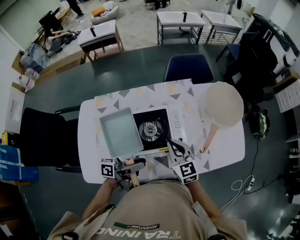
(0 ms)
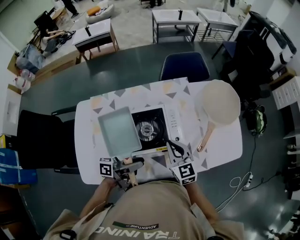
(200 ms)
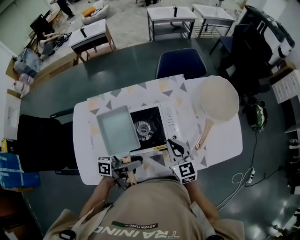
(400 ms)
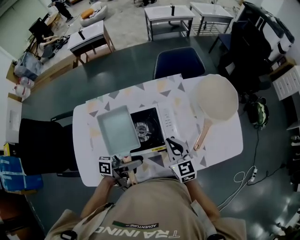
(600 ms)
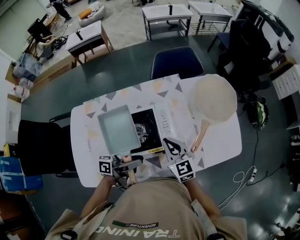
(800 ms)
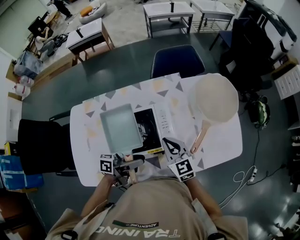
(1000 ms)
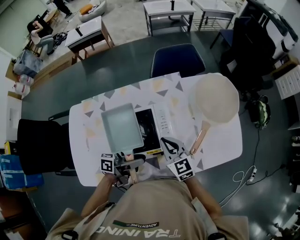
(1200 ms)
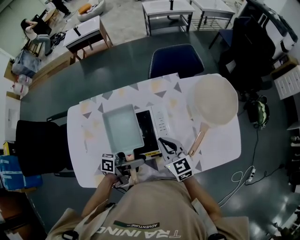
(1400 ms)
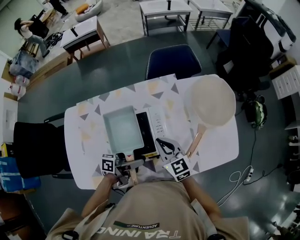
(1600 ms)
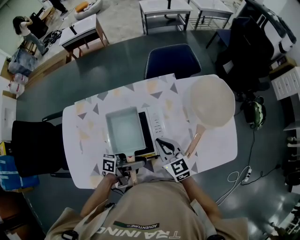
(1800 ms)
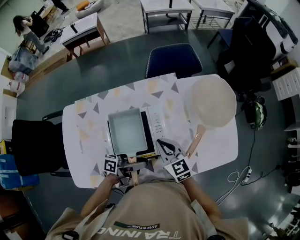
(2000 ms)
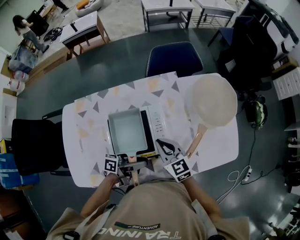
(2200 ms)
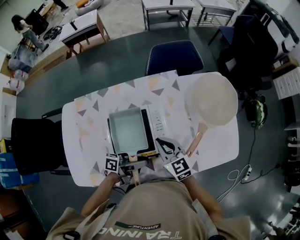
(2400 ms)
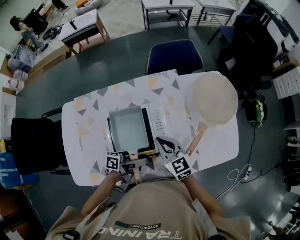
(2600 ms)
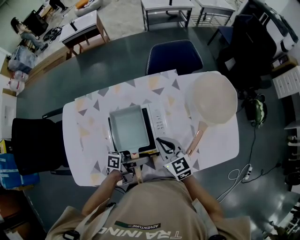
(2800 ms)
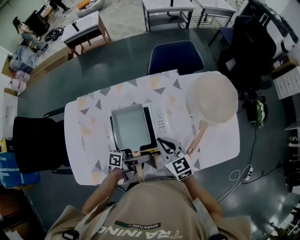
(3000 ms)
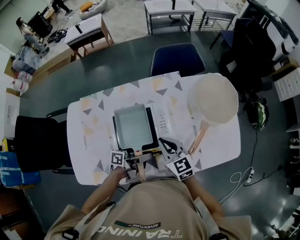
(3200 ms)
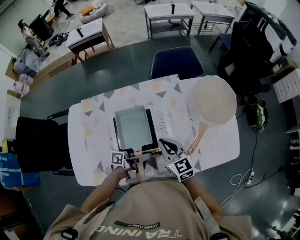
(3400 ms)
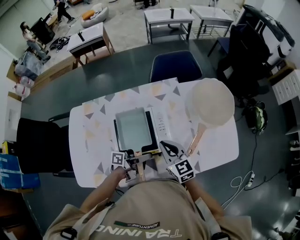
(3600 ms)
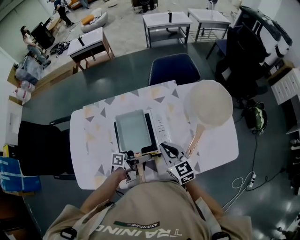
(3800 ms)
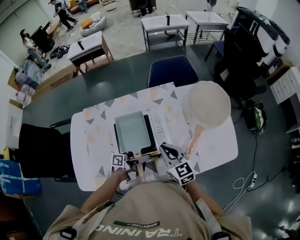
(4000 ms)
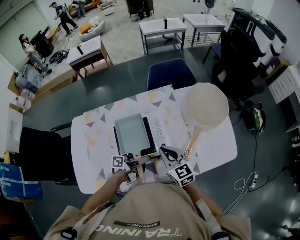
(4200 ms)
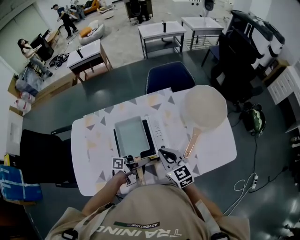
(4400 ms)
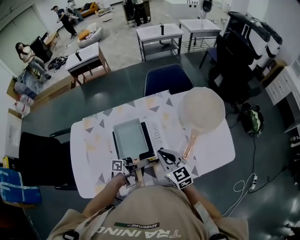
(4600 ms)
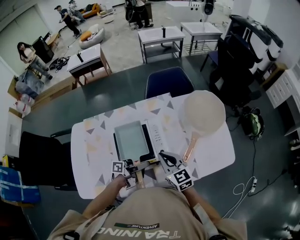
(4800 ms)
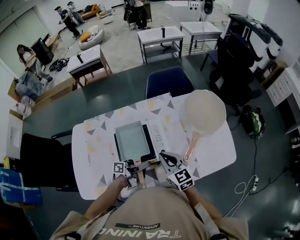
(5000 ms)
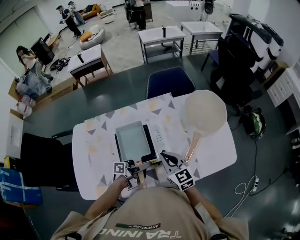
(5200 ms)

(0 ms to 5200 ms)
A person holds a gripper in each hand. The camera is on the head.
0 ms - 1800 ms: The right gripper changes place by about 5 cm.

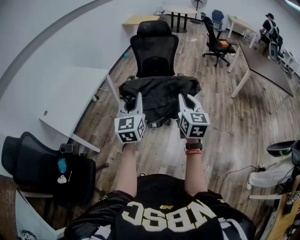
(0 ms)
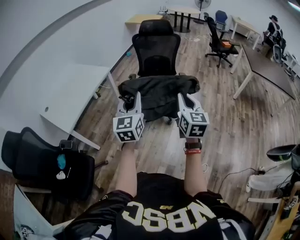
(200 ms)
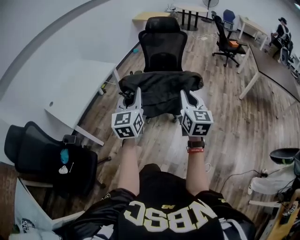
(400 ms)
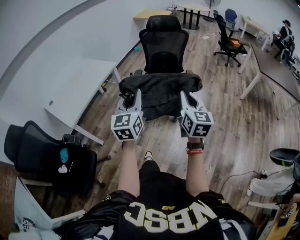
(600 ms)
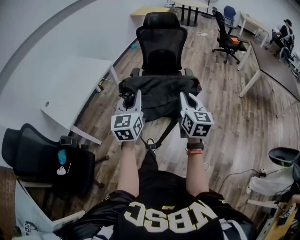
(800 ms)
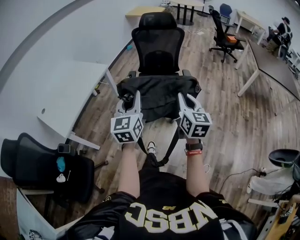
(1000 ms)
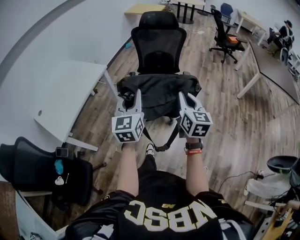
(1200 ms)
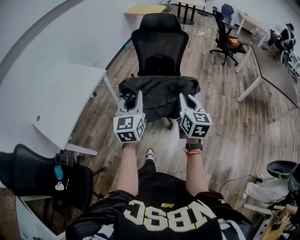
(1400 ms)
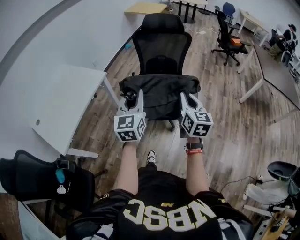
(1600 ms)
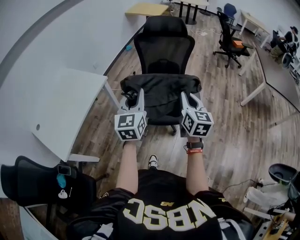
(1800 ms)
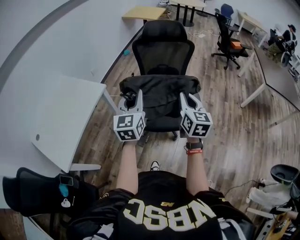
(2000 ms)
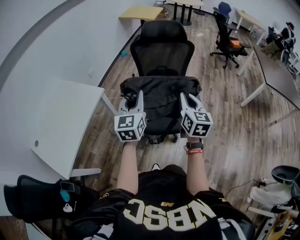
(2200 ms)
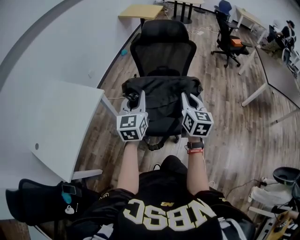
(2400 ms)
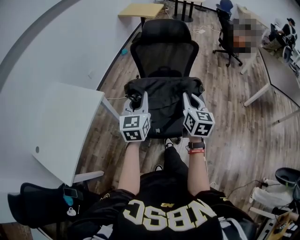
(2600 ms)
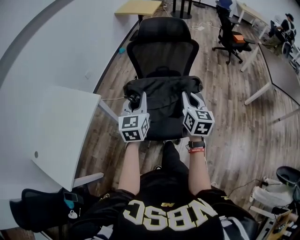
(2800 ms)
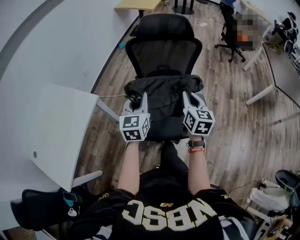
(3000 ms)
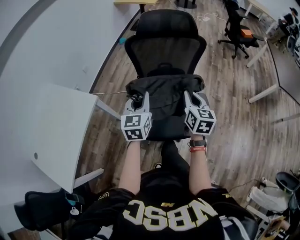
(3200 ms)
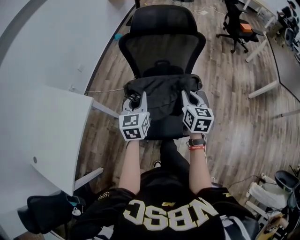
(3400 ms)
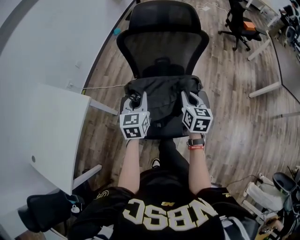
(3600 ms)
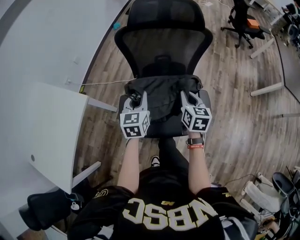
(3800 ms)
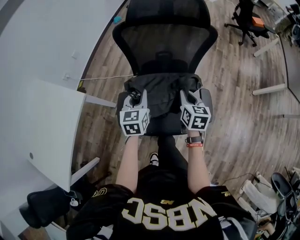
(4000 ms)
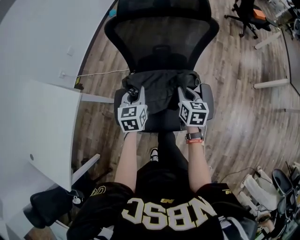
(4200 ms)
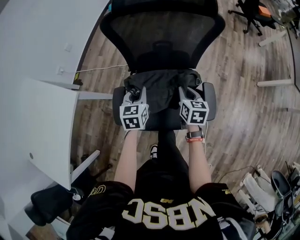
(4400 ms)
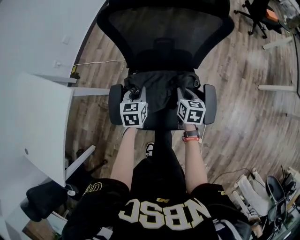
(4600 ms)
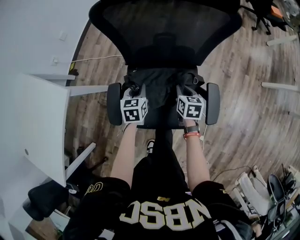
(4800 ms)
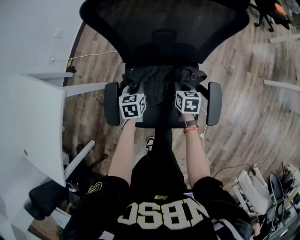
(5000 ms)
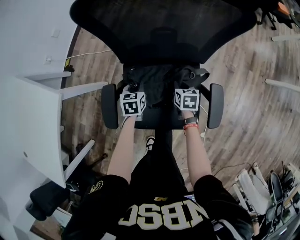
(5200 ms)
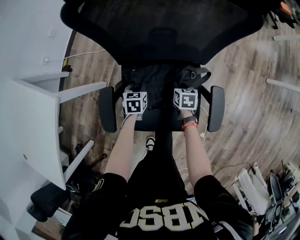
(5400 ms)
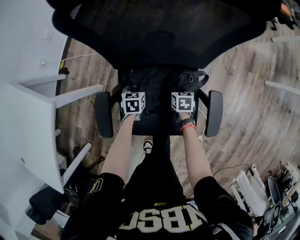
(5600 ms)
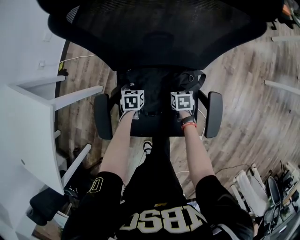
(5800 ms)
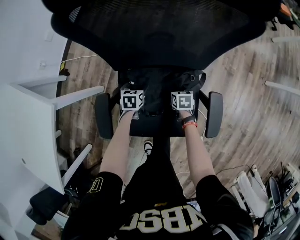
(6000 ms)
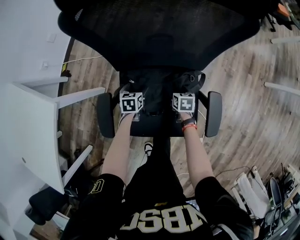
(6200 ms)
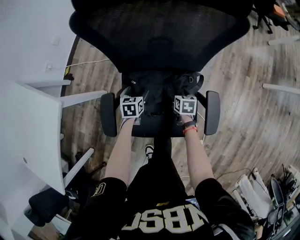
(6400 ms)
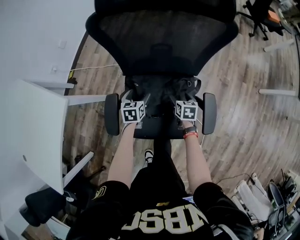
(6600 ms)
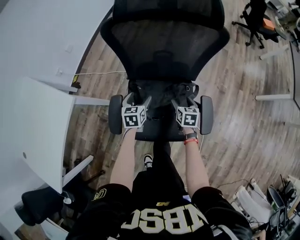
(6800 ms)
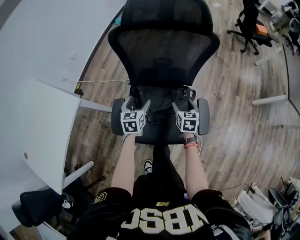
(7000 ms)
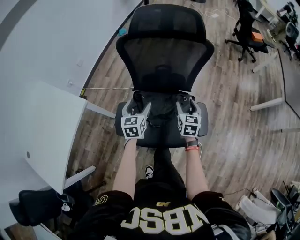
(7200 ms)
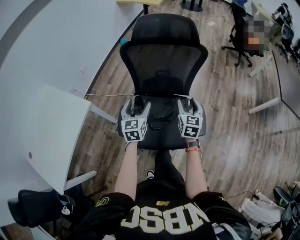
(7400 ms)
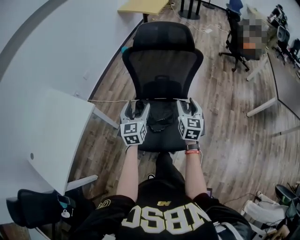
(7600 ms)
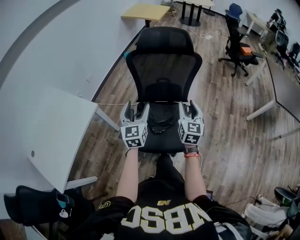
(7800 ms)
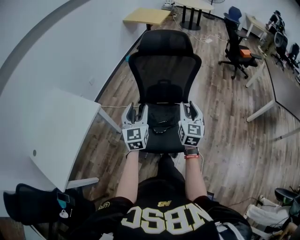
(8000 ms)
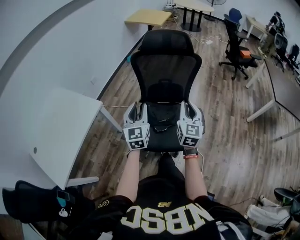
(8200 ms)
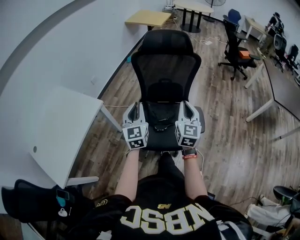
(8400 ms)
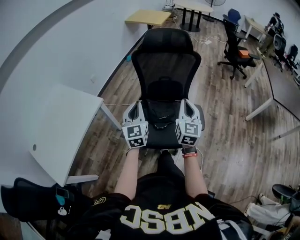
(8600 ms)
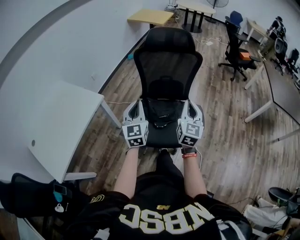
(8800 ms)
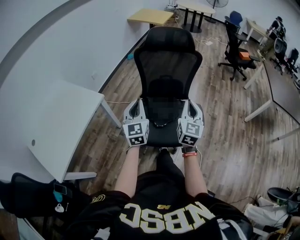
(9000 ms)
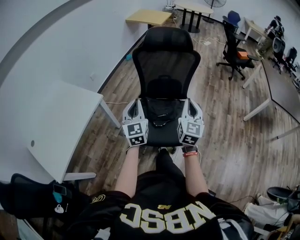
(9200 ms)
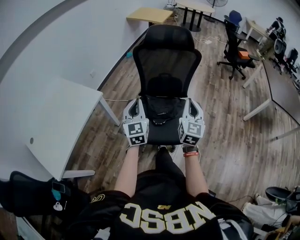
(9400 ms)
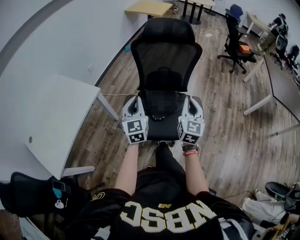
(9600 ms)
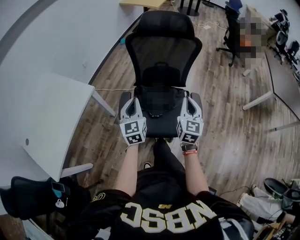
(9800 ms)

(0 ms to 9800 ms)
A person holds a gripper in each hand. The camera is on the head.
0 ms - 1400 ms: Both grippers travel together forward, about 20 cm.
1400 ms - 2800 ms: The two grippers go approximately 30 cm forward.
2800 ms - 4200 ms: The two grippers go some 30 cm downward and forward. The left gripper swivels approximately 20 degrees. Meanwhile the right gripper changes its angle by about 20 degrees.
4200 ms - 5600 ms: The two grippers go some 30 cm downward. The right gripper changes its angle by about 30 degrees, while the left gripper swivels about 30 degrees.
5600 ms - 7000 ms: Both grippers travel together upward, some 25 cm. The right gripper turns by some 20 degrees, and opens up. Meanwhile the left gripper turns by about 20 degrees, and opens its fingers.
7000 ms - 8400 ms: The two grippers go some 35 cm upward and backward. The right gripper tips its fingers upward by approximately 40 degrees, and closes up; the left gripper angles its fingers upward, by roughly 30 degrees, and closes up.
8400 ms - 9800 ms: The grippers make only small movements.

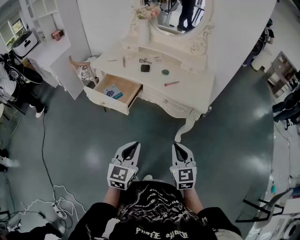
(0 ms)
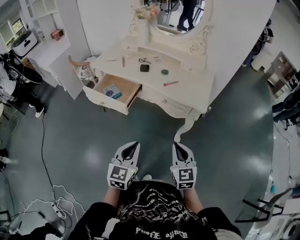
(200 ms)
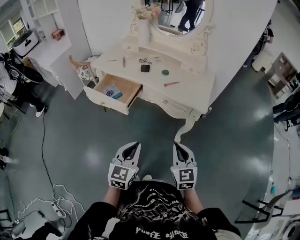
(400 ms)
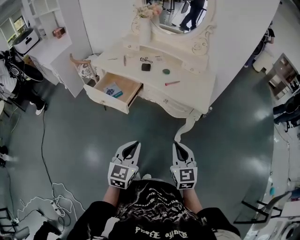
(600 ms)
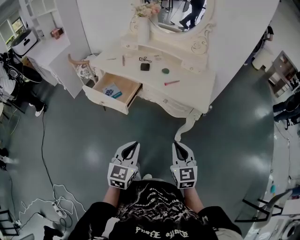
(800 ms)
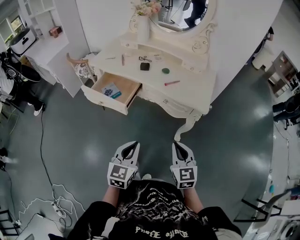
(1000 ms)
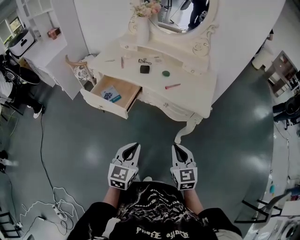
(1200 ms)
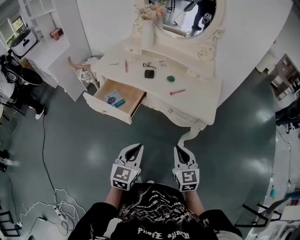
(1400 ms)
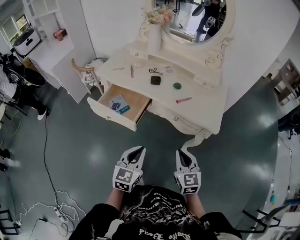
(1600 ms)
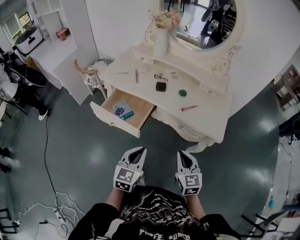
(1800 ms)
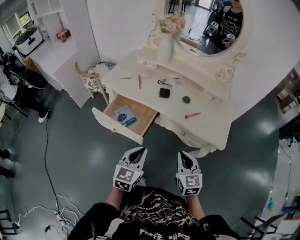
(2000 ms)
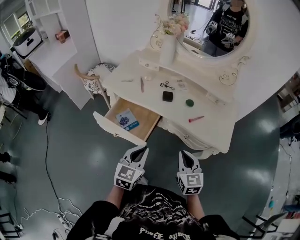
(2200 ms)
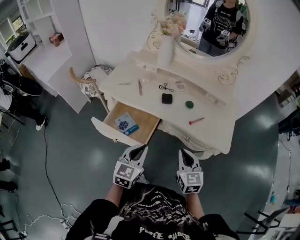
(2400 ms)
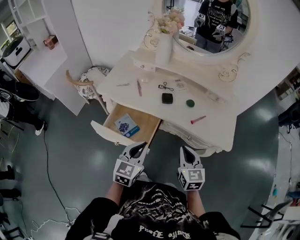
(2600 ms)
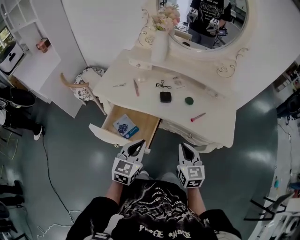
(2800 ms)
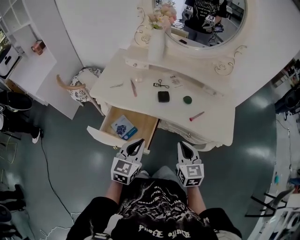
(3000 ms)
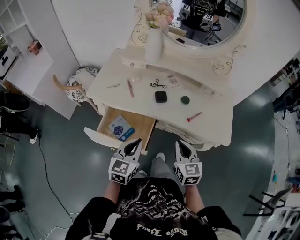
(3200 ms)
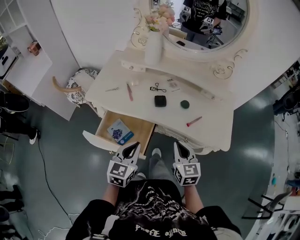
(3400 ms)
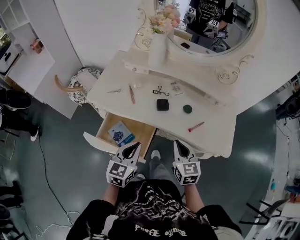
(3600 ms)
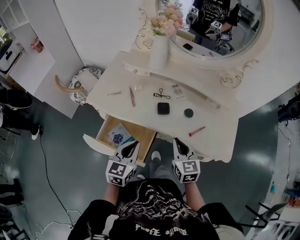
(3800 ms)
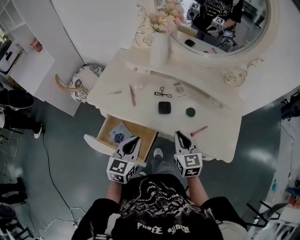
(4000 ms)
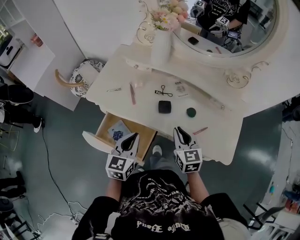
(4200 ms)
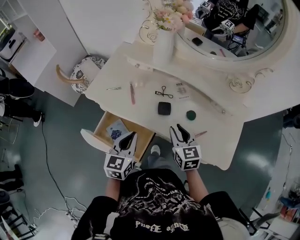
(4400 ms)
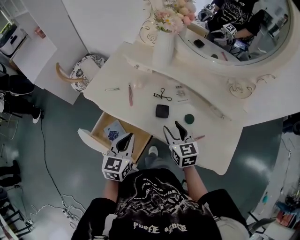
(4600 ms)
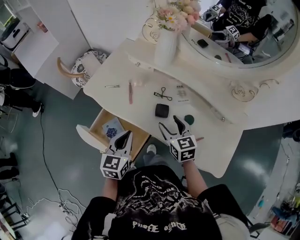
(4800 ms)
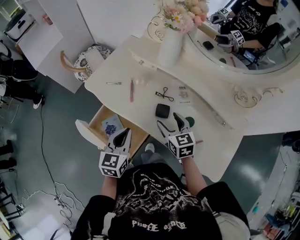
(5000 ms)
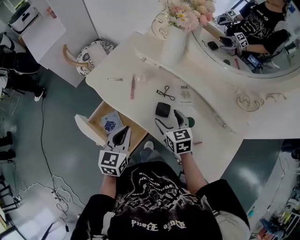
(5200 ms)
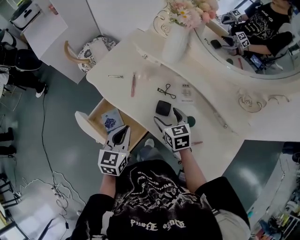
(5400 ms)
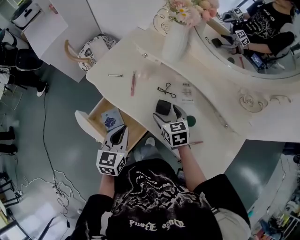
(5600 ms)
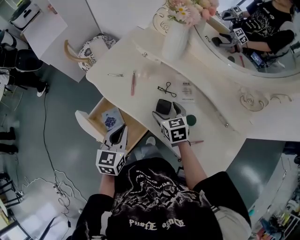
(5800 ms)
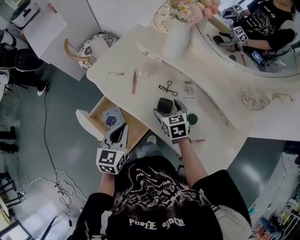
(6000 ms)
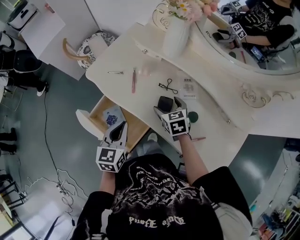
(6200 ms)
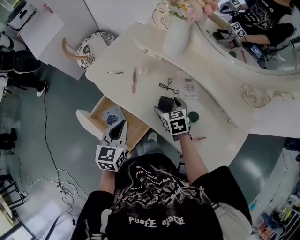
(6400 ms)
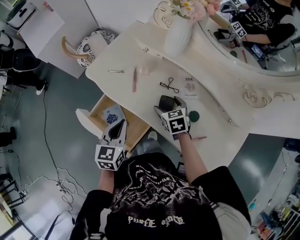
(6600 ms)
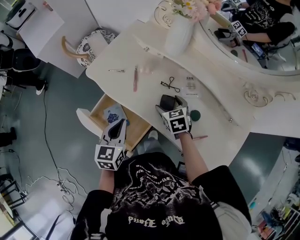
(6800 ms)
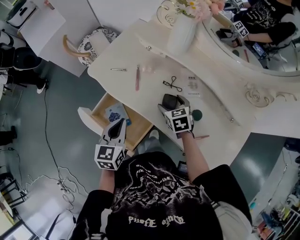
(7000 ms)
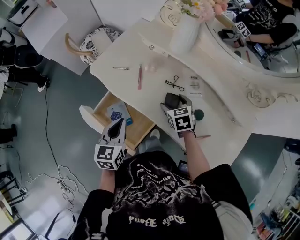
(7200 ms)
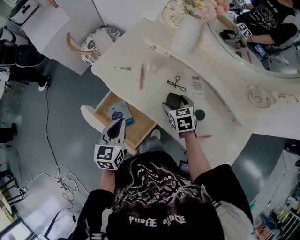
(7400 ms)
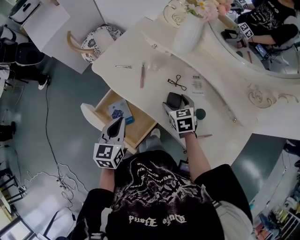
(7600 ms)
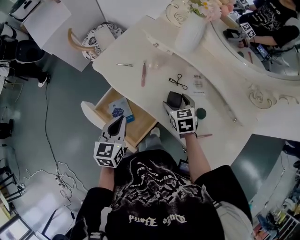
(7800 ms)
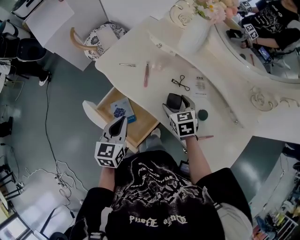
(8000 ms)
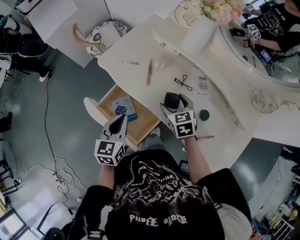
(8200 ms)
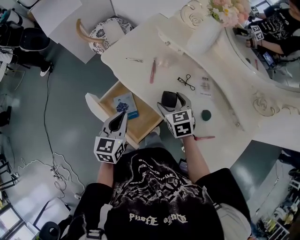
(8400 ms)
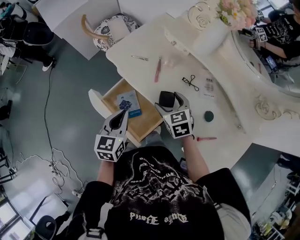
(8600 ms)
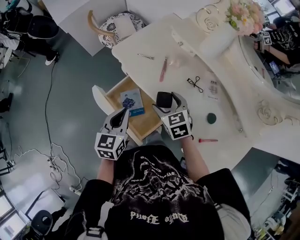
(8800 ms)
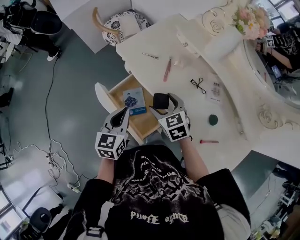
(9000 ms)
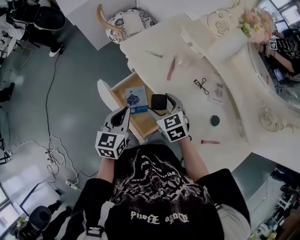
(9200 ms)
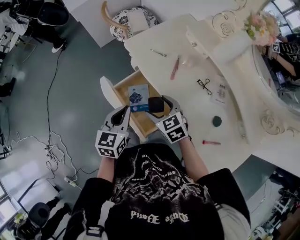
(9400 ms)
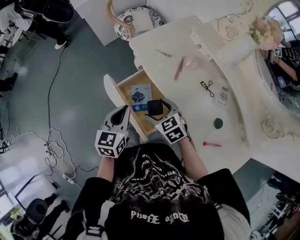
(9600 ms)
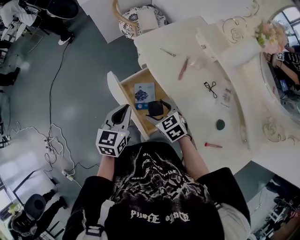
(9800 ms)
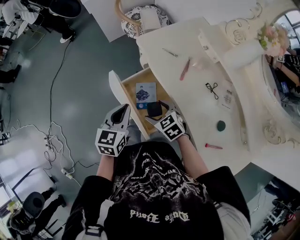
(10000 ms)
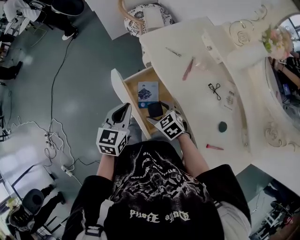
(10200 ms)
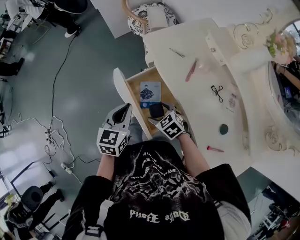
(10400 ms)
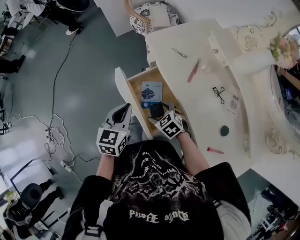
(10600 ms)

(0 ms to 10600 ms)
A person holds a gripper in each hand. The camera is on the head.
0 ms - 1600 ms: Both grippers move forward, approximately 10 cm.
1600 ms - 3000 ms: Both grippers travel together forward and to the left, approximately 20 cm.
3000 ms - 4600 ms: The right gripper goes roughly 20 cm forward, and opens. The left gripper heads forward, covering some 15 cm.
4600 ms - 6000 ms: The right gripper travels forward and downward by some 10 cm, and opens.
6000 ms - 7600 ms: There are only small adjustments of the grippers.
7600 ms - 9000 ms: The left gripper shifts about 5 cm to the left; the right gripper travels to the left by about 15 cm, and changes its angle by about 30 degrees.
9000 ms - 10600 ms: The right gripper is displaced to the left and downward by about 15 cm, and rotates some 30 degrees; the left gripper moves to the left, approximately 5 cm.
